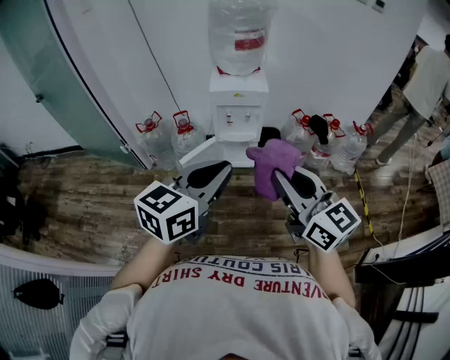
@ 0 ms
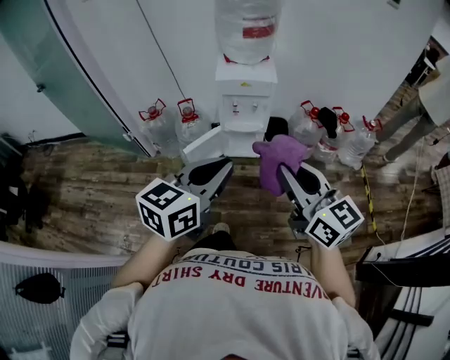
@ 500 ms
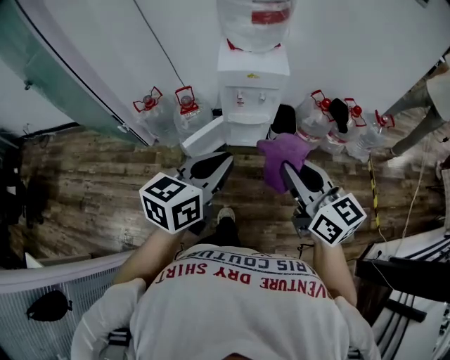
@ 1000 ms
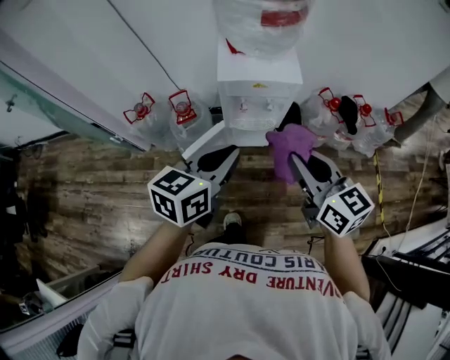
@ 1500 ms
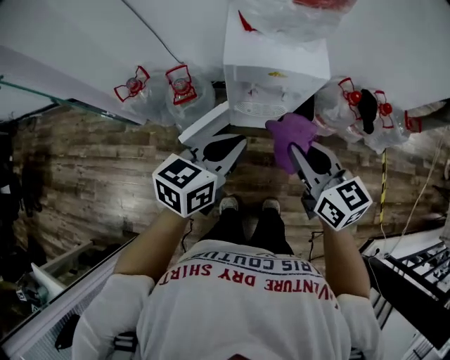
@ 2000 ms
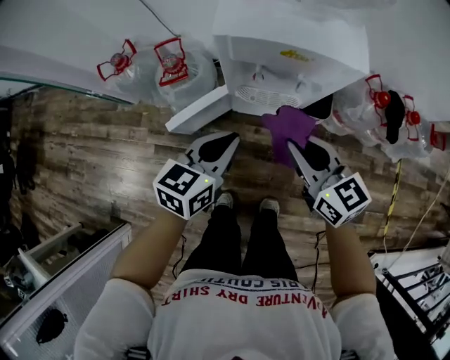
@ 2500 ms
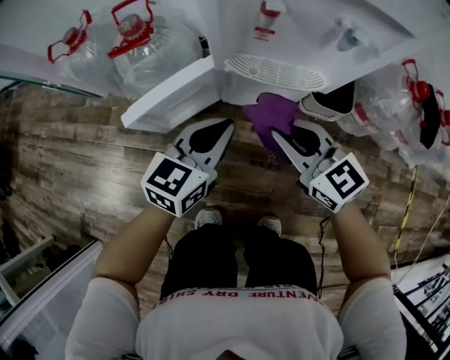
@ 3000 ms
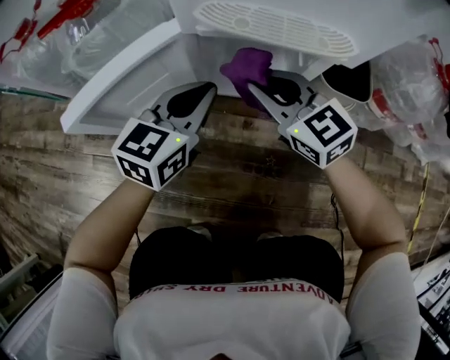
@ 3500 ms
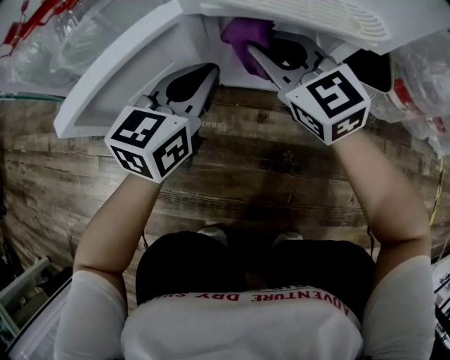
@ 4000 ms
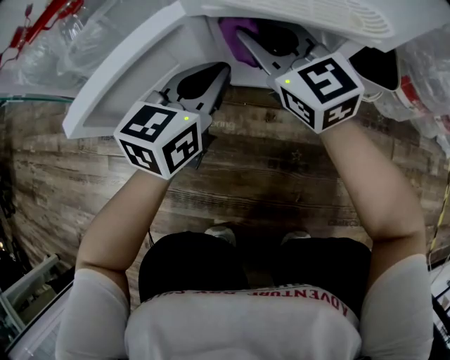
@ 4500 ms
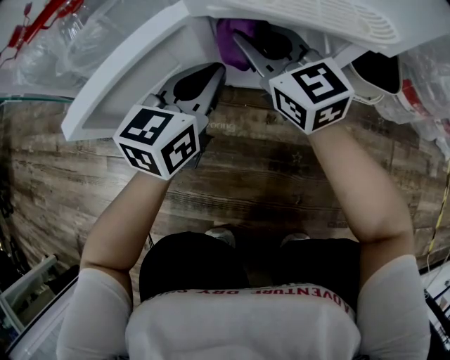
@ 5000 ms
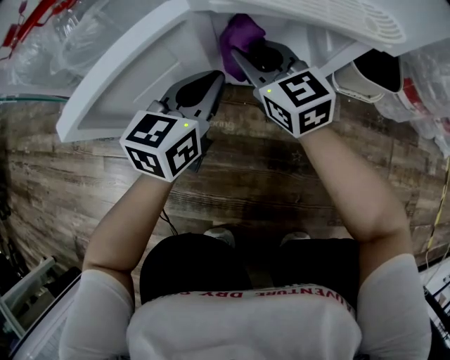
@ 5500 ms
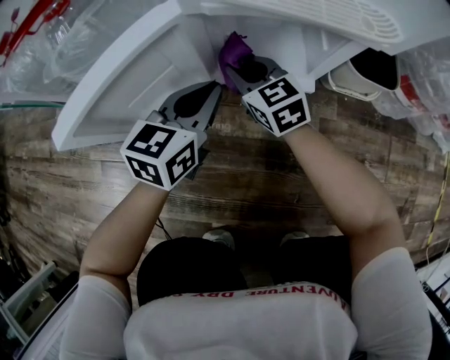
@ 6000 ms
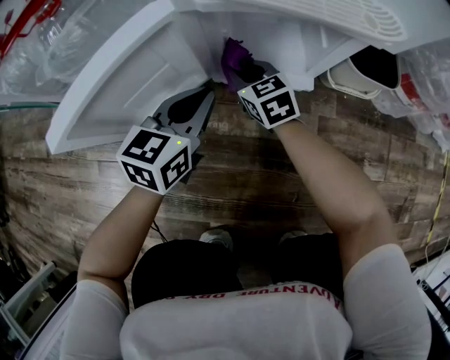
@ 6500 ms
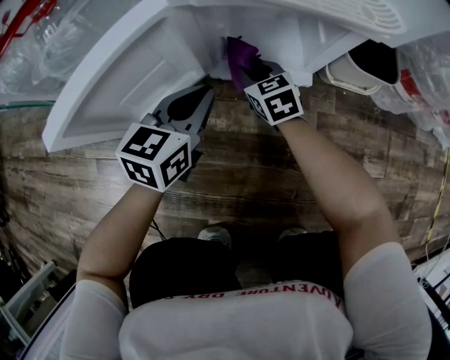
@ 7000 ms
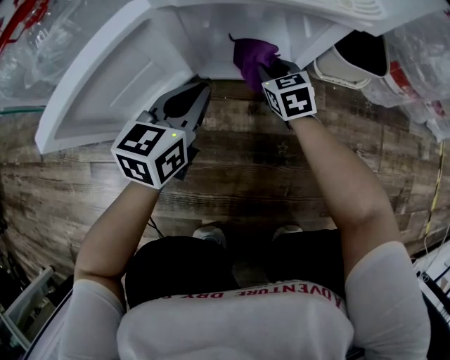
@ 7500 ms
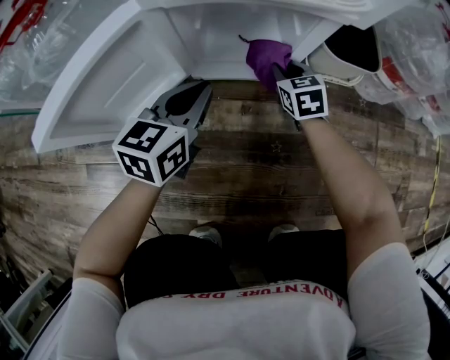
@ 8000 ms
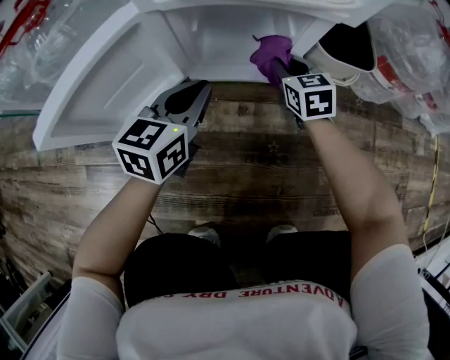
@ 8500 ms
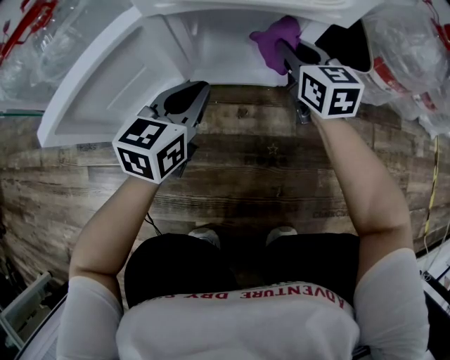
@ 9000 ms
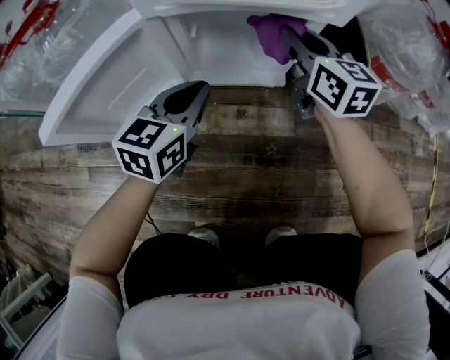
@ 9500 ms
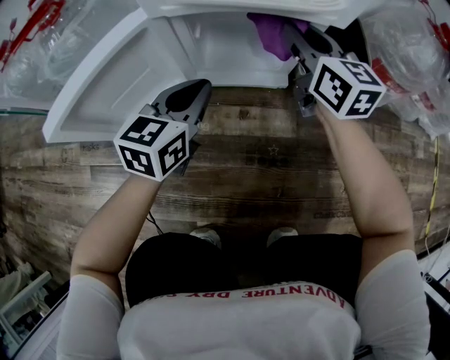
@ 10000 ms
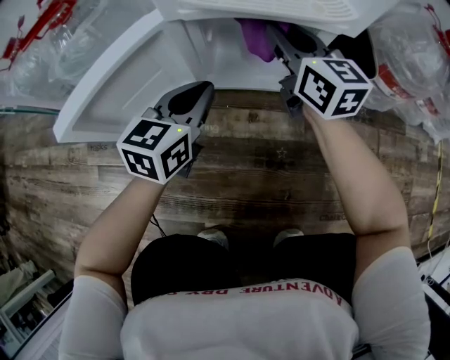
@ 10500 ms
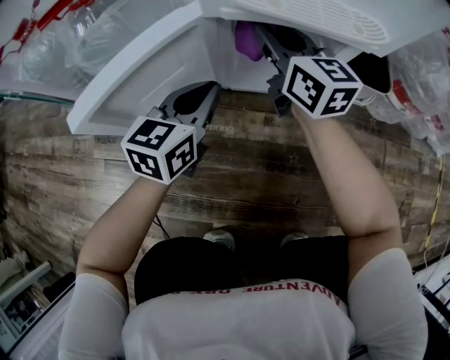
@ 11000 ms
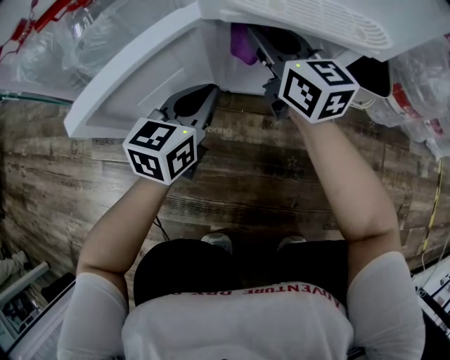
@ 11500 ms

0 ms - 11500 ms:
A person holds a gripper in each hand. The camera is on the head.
0 ms - 2000 ms: The two grippers go roughly 40 cm forward and downward. The right gripper rotates approximately 20 degrees.
2000 ms - 4000 ms: Both grippers travel together downward, some 50 cm. The right gripper rotates roughly 30 degrees.
4000 ms - 6000 ms: The right gripper travels downward by some 15 cm. The left gripper is displaced downward by some 5 cm.
6000 ms - 7500 ms: The right gripper moves to the right and downward, about 15 cm, and changes its angle by roughly 20 degrees.
7500 ms - 9500 ms: The right gripper shifts roughly 20 cm upward, and turns by about 30 degrees.
9500 ms - 11500 ms: The right gripper heads to the left, covering roughly 15 cm; the left gripper goes some 5 cm to the left.

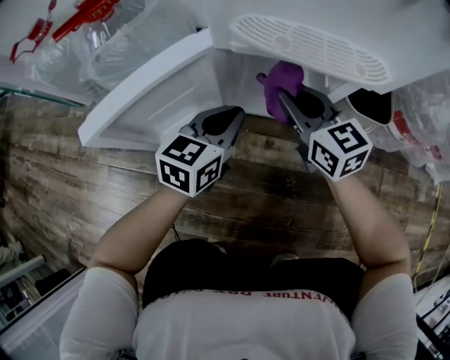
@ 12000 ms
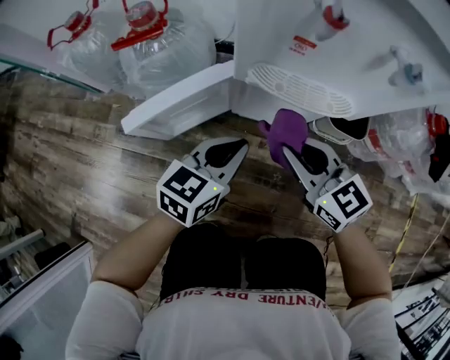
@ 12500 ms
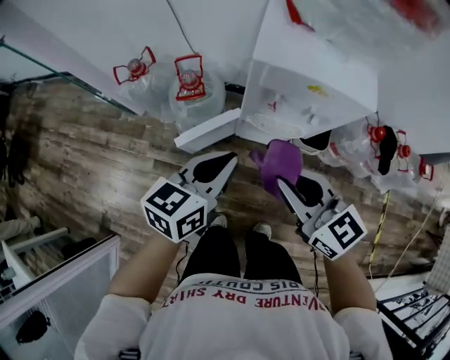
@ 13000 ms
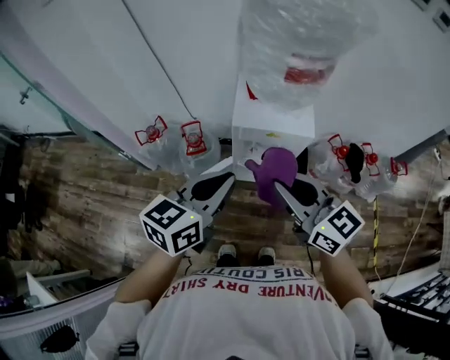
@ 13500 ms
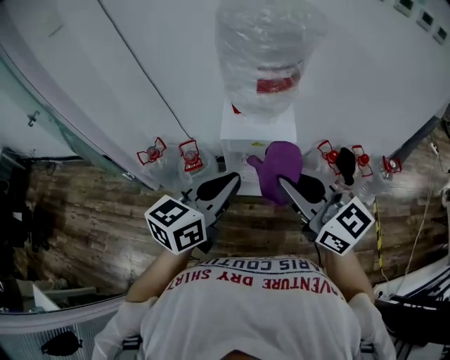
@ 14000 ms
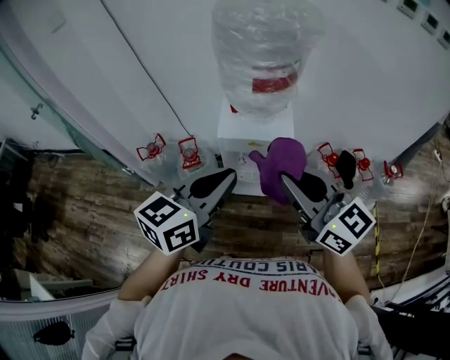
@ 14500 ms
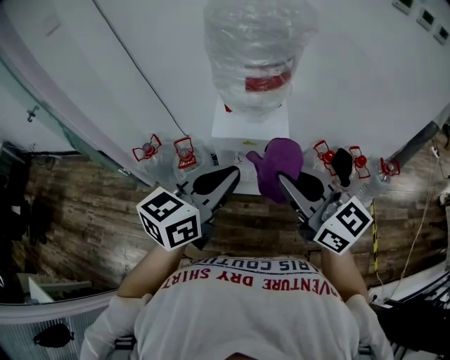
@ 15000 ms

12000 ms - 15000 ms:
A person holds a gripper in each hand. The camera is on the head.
12000 ms - 13500 ms: Both grippers travel together upward, roughly 70 cm.
13500 ms - 15000 ms: The two grippers go approximately 10 cm to the right and upward.

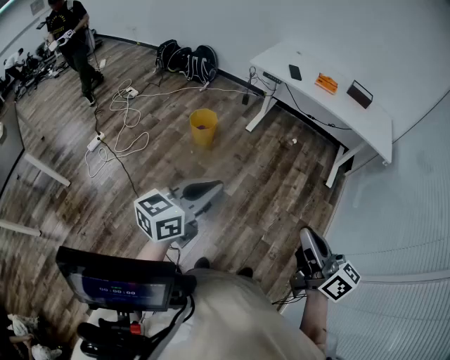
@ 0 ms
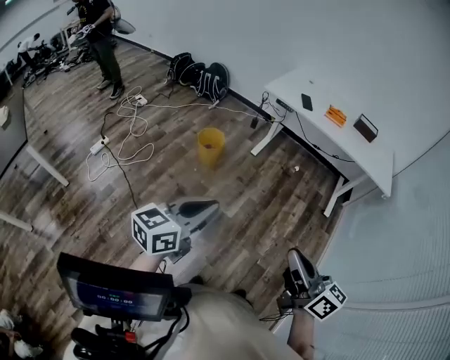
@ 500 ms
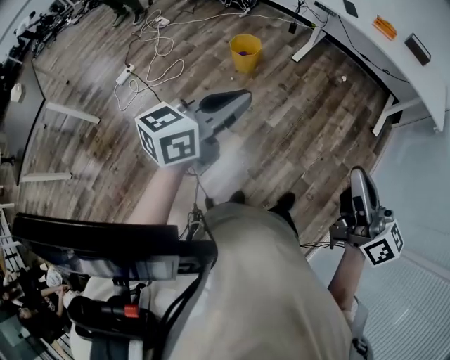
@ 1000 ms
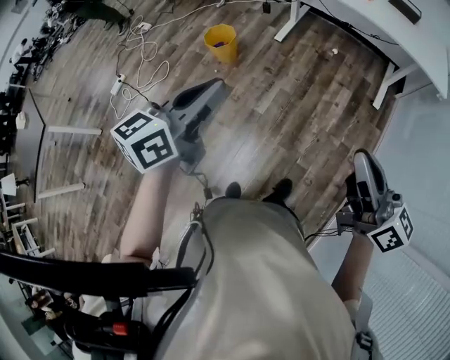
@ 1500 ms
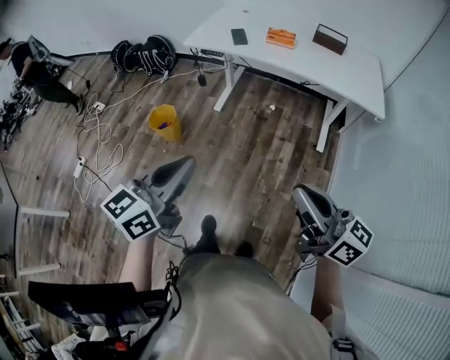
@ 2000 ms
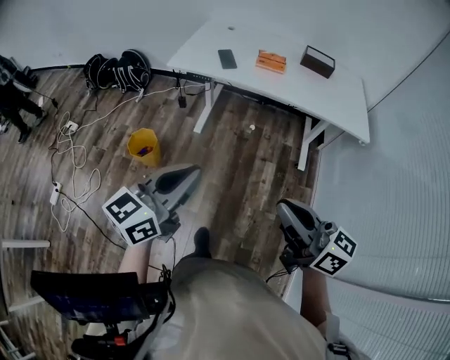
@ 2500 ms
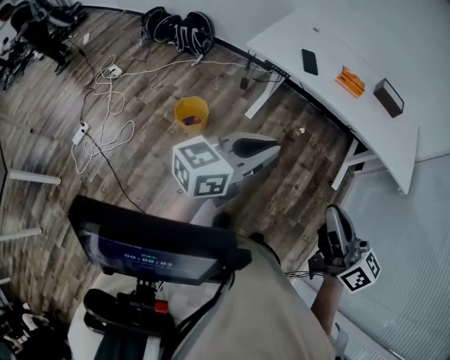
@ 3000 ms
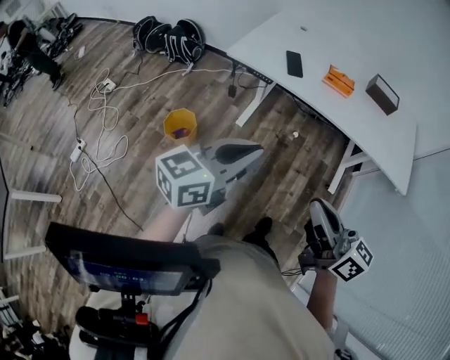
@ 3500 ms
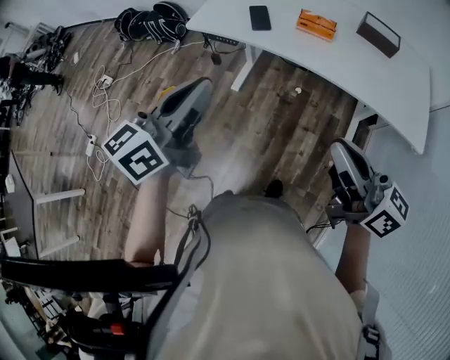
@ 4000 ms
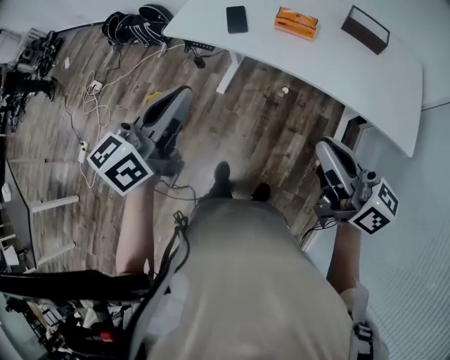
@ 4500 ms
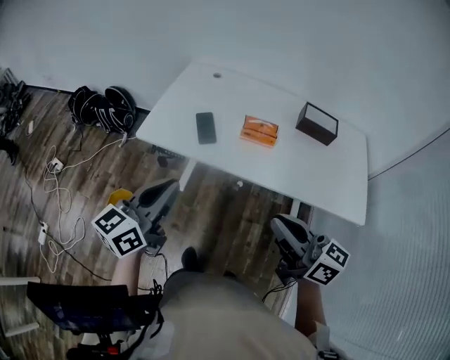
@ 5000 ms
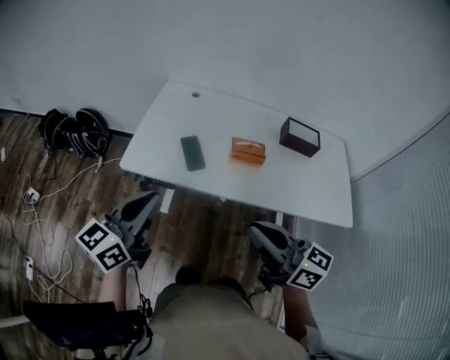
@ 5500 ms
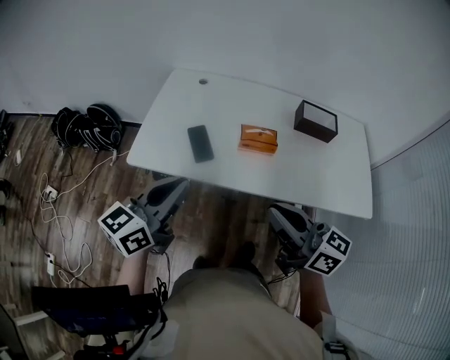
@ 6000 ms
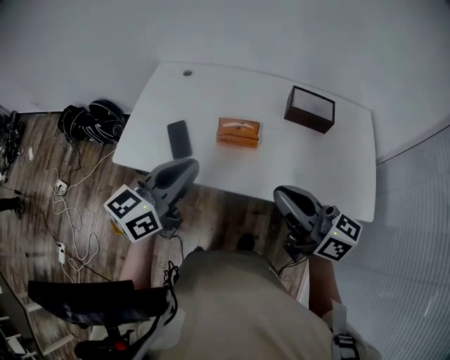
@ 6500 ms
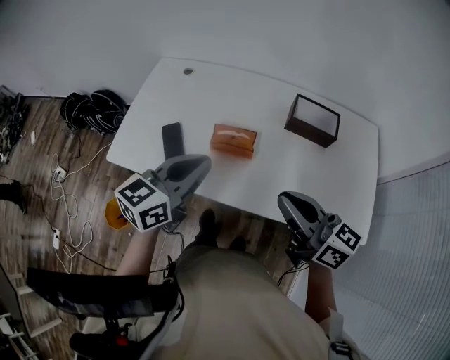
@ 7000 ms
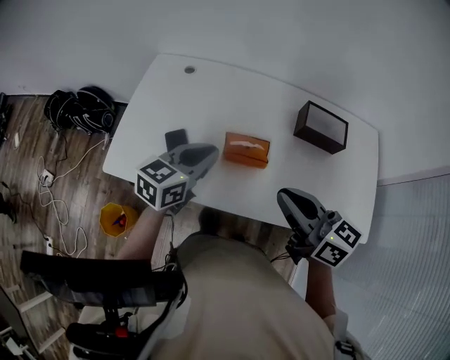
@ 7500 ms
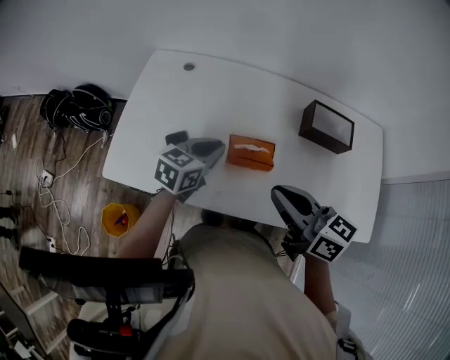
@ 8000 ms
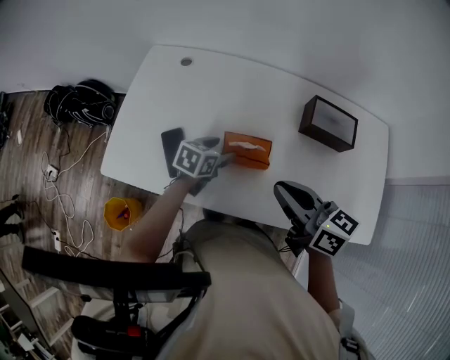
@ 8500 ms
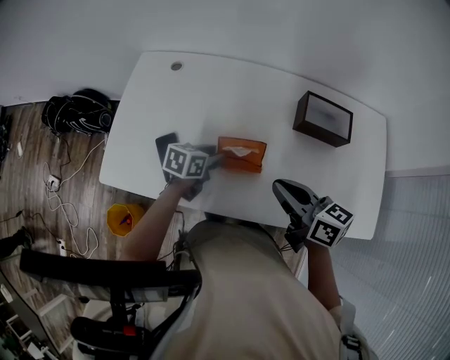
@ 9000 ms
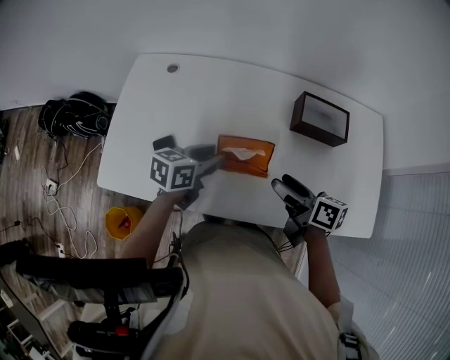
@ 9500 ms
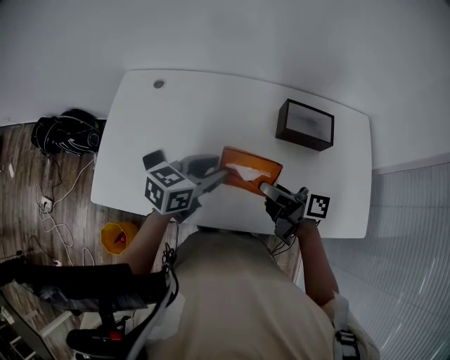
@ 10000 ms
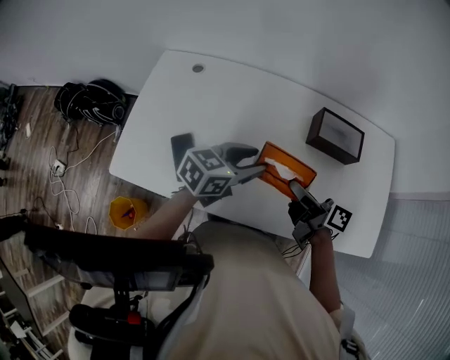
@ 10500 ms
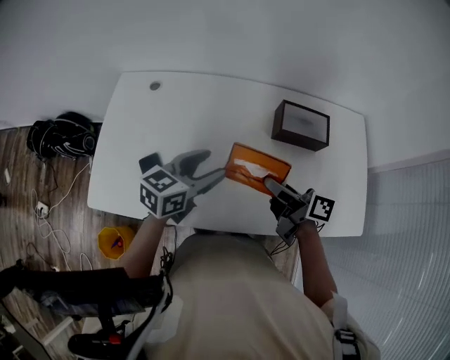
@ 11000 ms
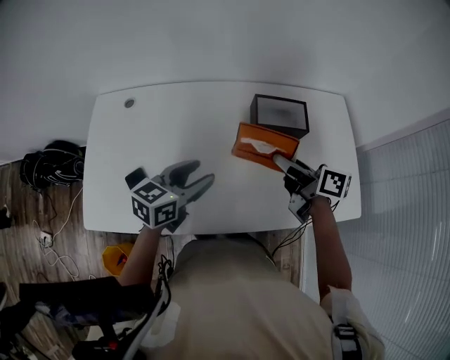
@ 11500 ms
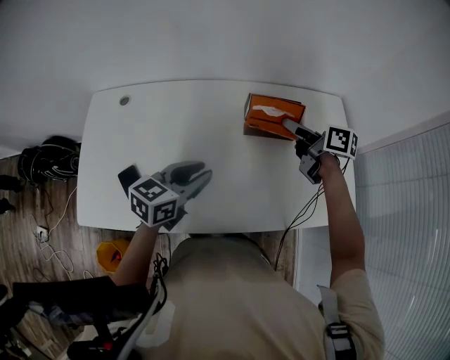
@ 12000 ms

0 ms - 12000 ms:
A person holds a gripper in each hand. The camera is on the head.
0 ms - 2000 ms: The two grippers go about 30 cm to the right and forward.
2000 ms - 4000 ms: Both grippers travel together forward, roughly 35 cm.
4000 ms - 6000 ms: Both grippers travel together forward, approximately 25 cm.
6000 ms - 8000 ms: The left gripper heads forward, downward and to the right, covering approximately 35 cm, and rotates some 30 degrees. Meanwhile the right gripper goes approximately 20 cm forward.
8000 ms - 10000 ms: The left gripper moves to the right and upward, roughly 10 cm, and opens. Meanwhile the right gripper travels downward, forward and to the right by approximately 10 cm, turns by about 40 degrees, and opens its fingers.
10000 ms - 12000 ms: The left gripper opens, then closes again. Meanwhile the right gripper travels to the right and forward by about 25 cm, and swivels roughly 30 degrees.
